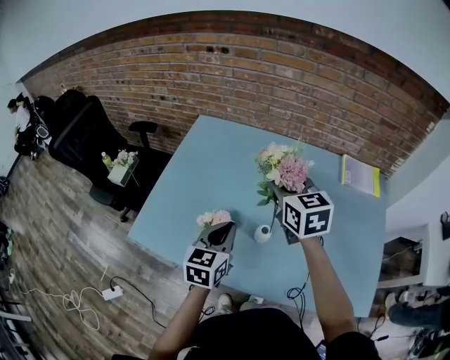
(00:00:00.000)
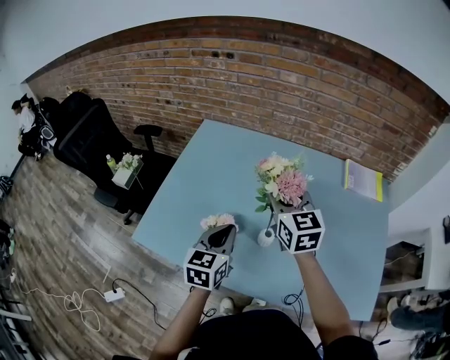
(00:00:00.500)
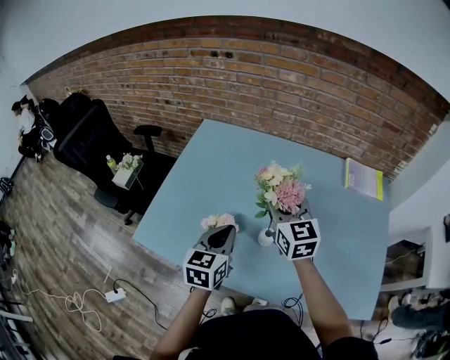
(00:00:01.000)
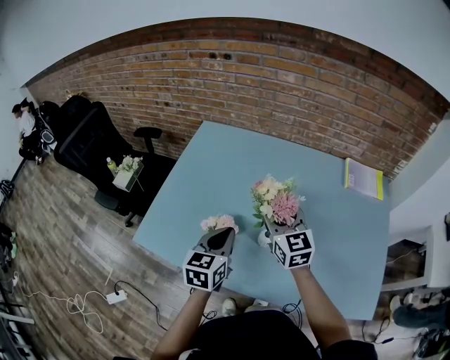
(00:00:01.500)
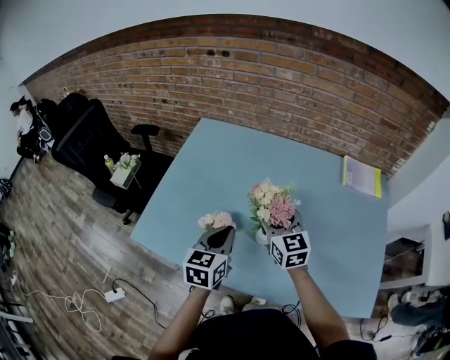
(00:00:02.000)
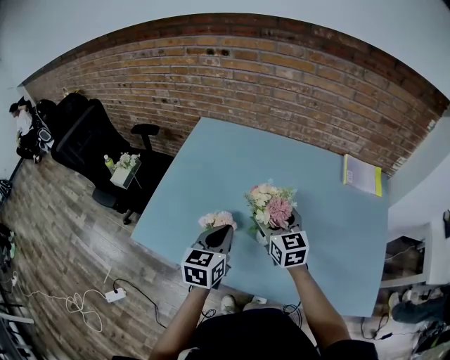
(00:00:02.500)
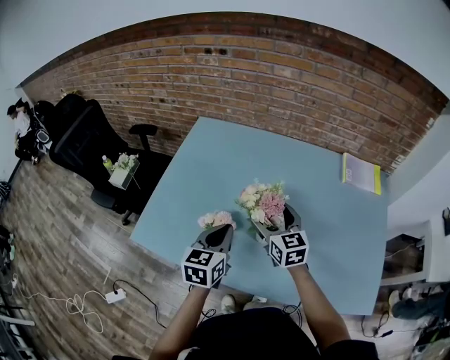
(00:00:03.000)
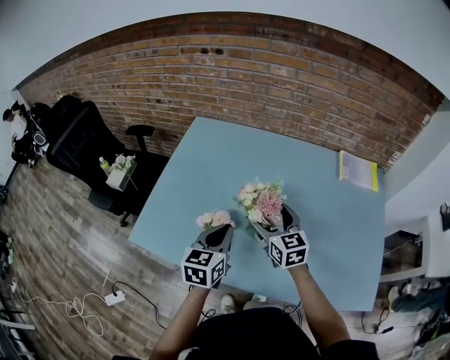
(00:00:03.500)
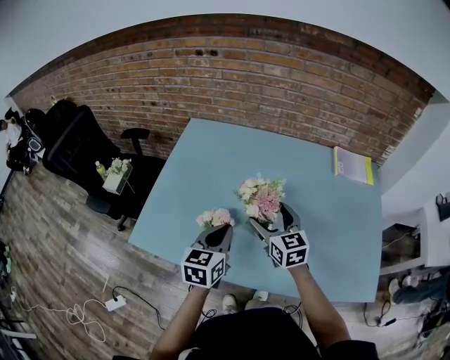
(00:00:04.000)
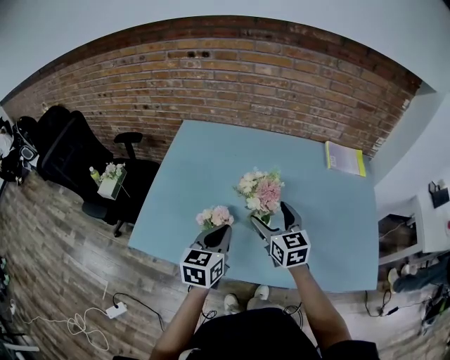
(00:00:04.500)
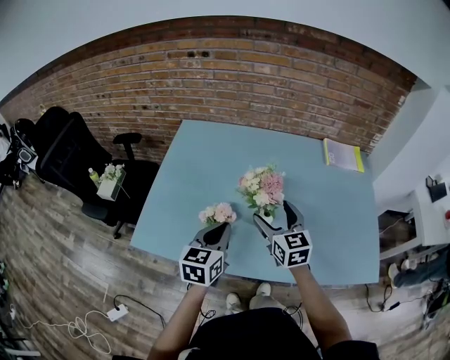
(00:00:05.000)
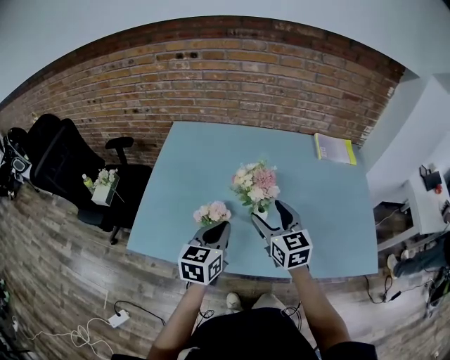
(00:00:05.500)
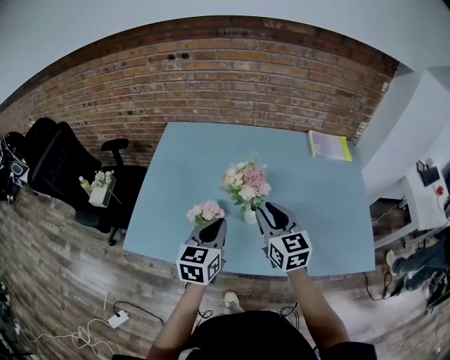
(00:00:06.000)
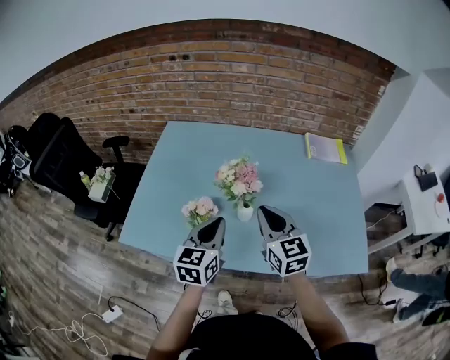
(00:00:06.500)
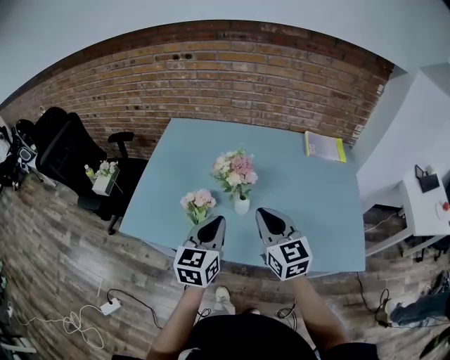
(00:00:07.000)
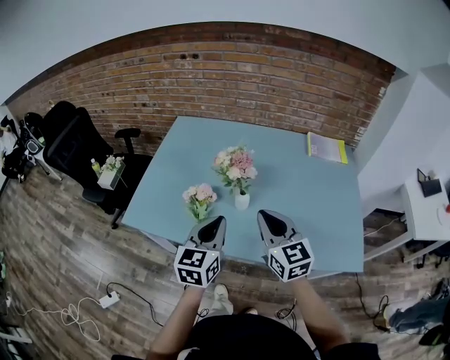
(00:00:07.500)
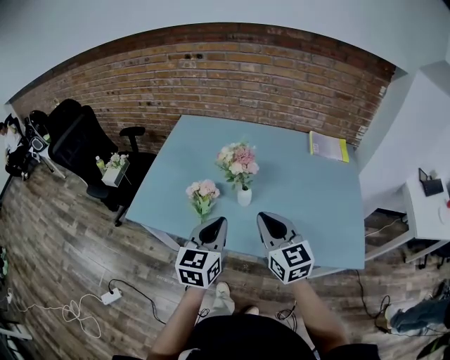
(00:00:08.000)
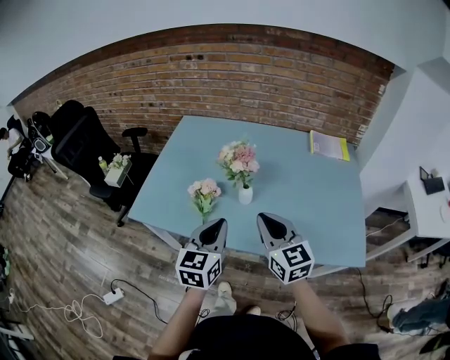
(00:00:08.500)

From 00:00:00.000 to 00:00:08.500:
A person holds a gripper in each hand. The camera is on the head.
From 00:00:00.000 to 00:00:02.000: The right gripper is displaced downward by about 10 cm.
From 00:00:02.000 to 00:00:04.000: The right gripper opens up.
From 00:00:04.000 to 00:00:06.500: The left gripper moves backward, approximately 5 cm. The right gripper shifts approximately 15 cm backward and upward, and closes.
From 00:00:06.500 to 00:00:08.500: The two grippers go some 10 cm backward.

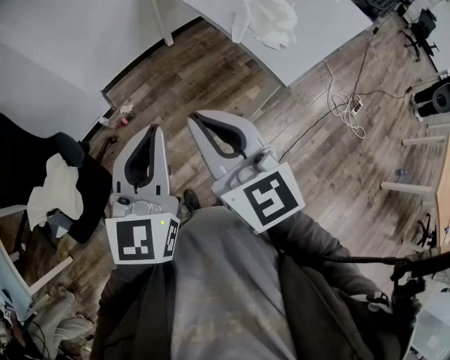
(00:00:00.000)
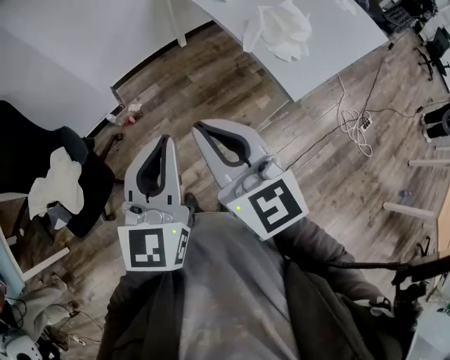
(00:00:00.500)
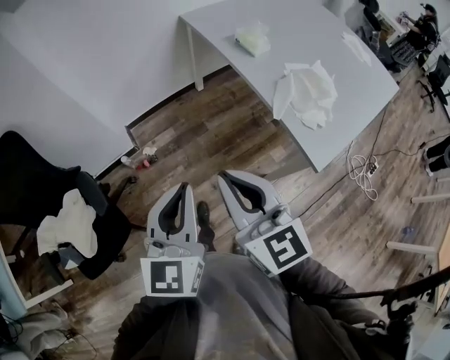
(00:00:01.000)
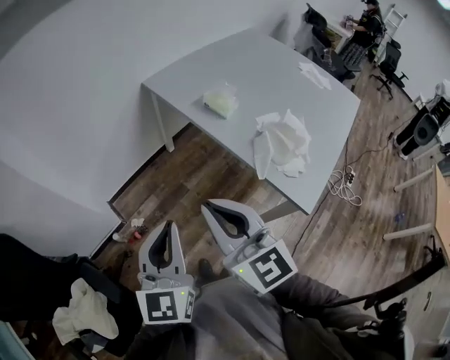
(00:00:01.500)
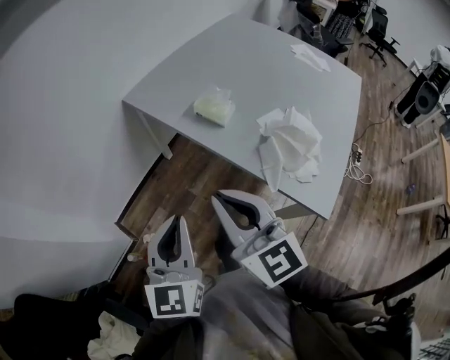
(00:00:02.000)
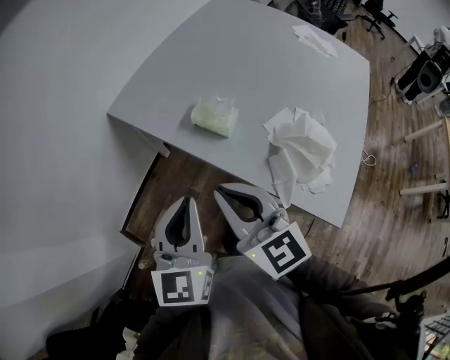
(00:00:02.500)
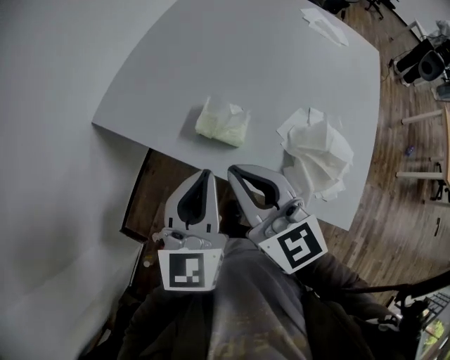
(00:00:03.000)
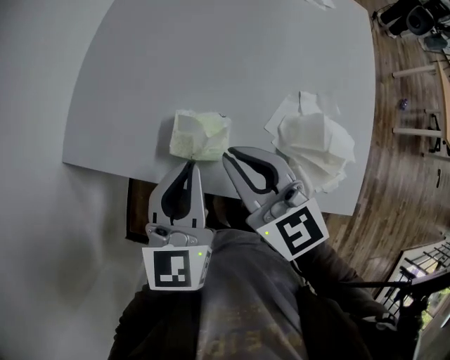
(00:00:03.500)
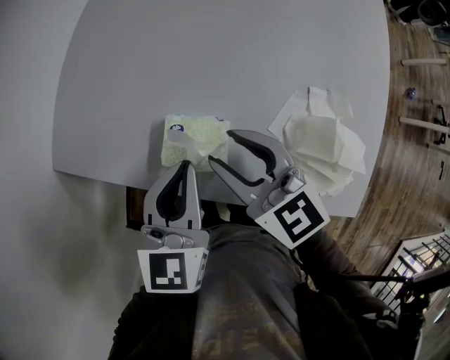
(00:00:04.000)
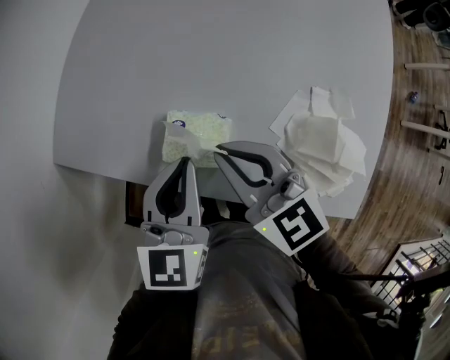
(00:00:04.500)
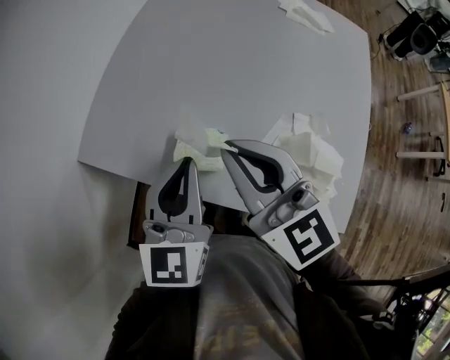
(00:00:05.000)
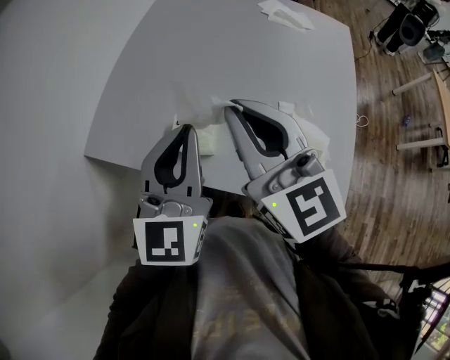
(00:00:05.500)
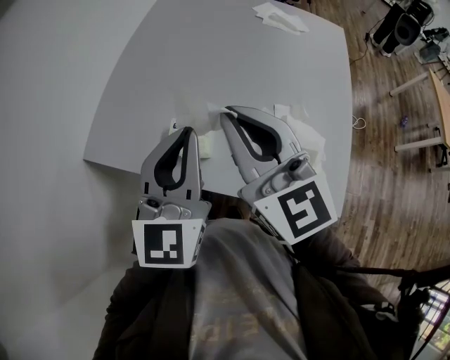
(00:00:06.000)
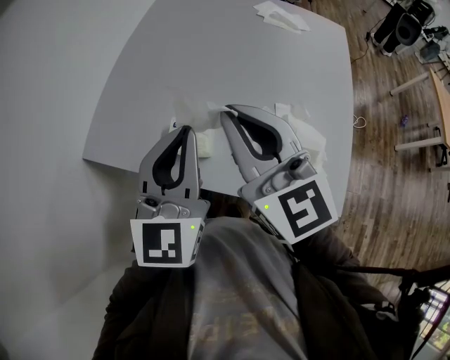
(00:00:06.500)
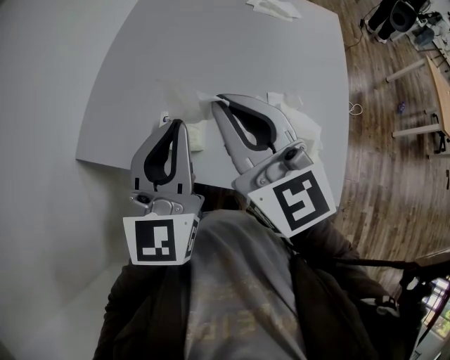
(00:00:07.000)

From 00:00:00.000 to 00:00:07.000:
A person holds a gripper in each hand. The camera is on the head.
From 00:00:00.000 to 00:00:02.000: The two grippers go roughly 40 cm forward.
From 00:00:02.000 to 00:00:03.500: Both grippers move forward, roughly 40 cm. The left gripper changes its angle by approximately 30 degrees. Meanwhile the right gripper turns by approximately 30 degrees.
From 00:00:03.500 to 00:00:05.000: The left gripper travels upward by about 5 cm; the right gripper moves upward, about 10 cm, and opens and closes again.
From 00:00:05.000 to 00:00:07.000: Both grippers move upward, roughly 10 cm.

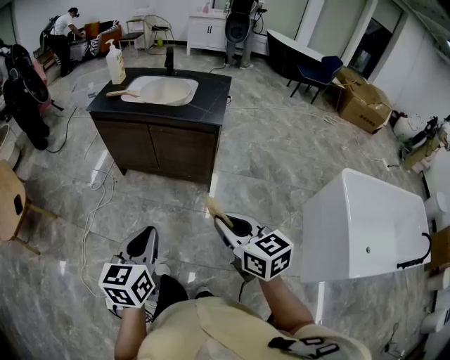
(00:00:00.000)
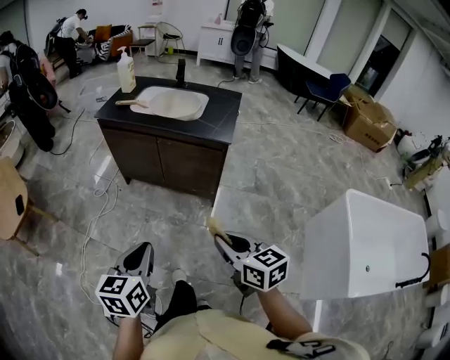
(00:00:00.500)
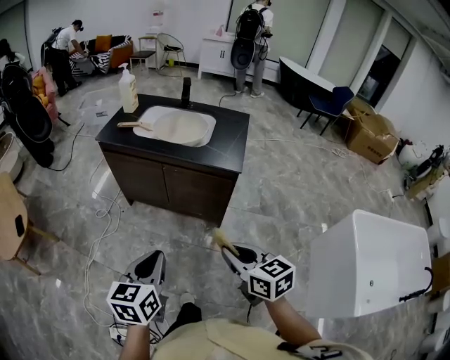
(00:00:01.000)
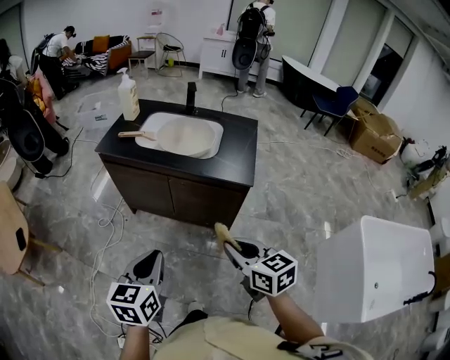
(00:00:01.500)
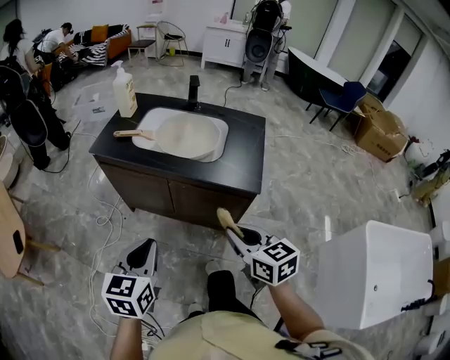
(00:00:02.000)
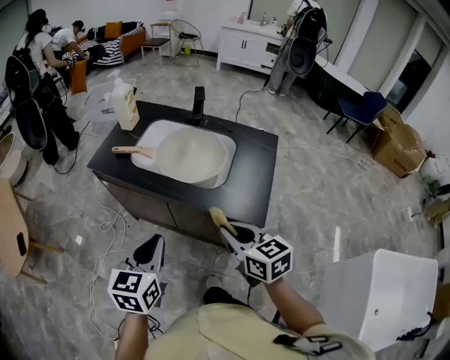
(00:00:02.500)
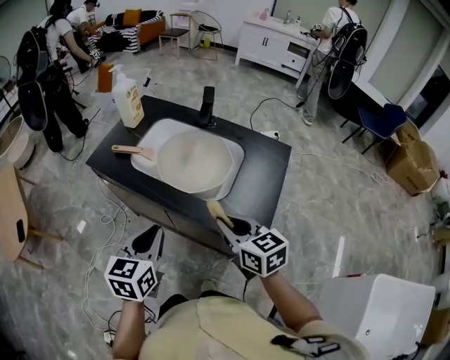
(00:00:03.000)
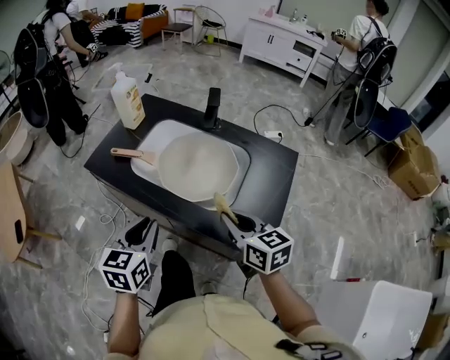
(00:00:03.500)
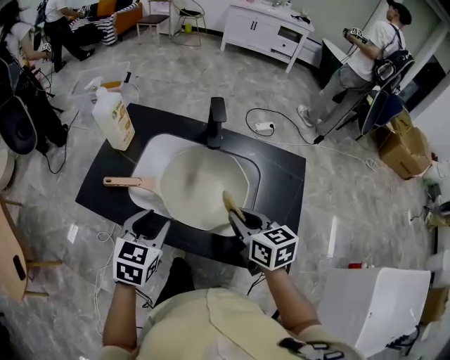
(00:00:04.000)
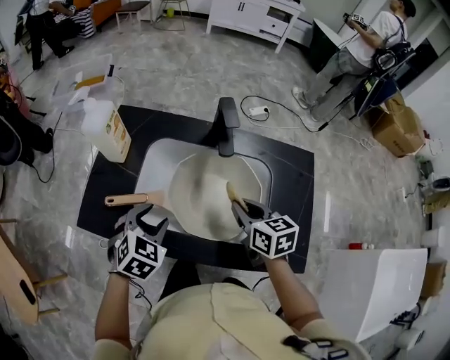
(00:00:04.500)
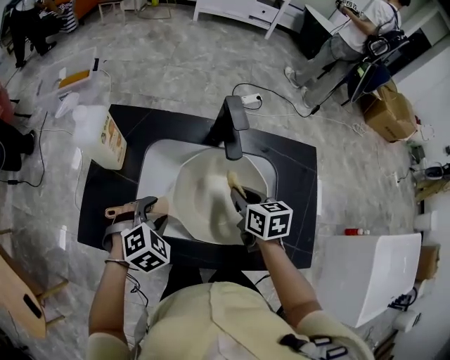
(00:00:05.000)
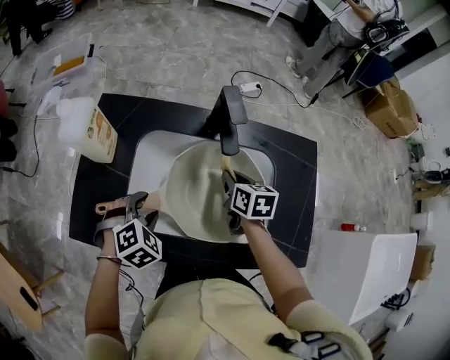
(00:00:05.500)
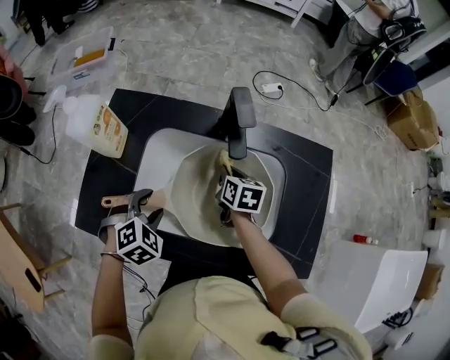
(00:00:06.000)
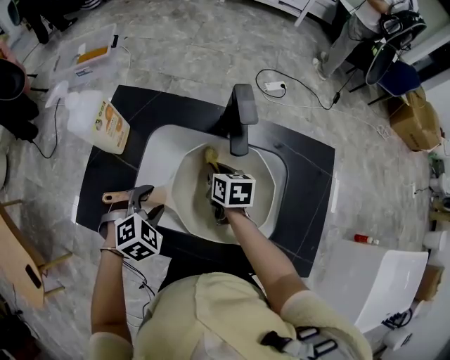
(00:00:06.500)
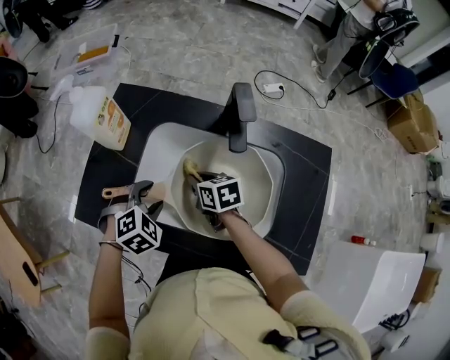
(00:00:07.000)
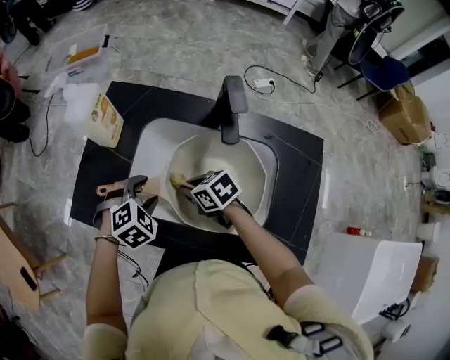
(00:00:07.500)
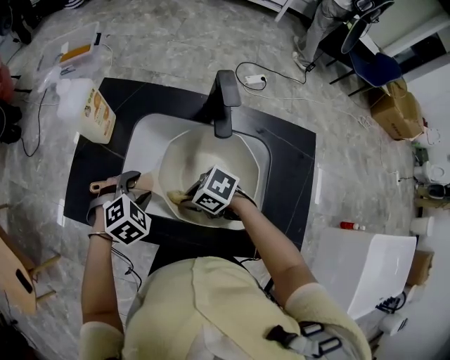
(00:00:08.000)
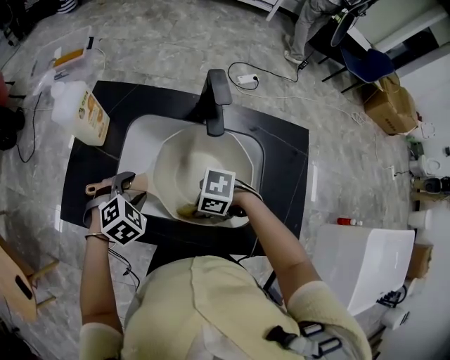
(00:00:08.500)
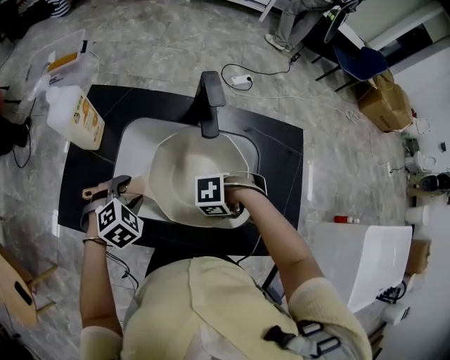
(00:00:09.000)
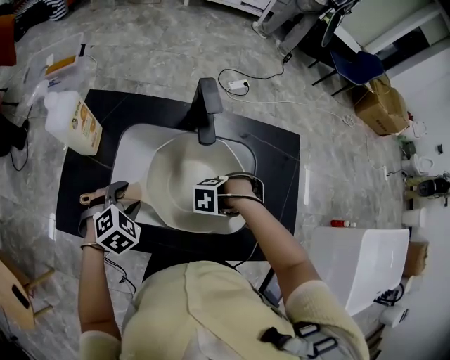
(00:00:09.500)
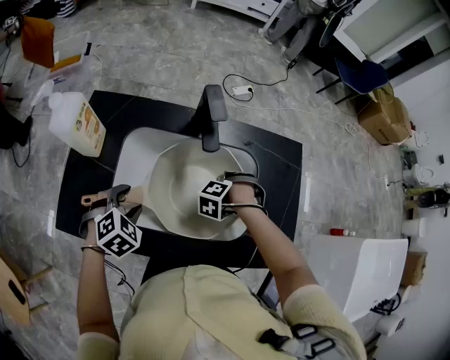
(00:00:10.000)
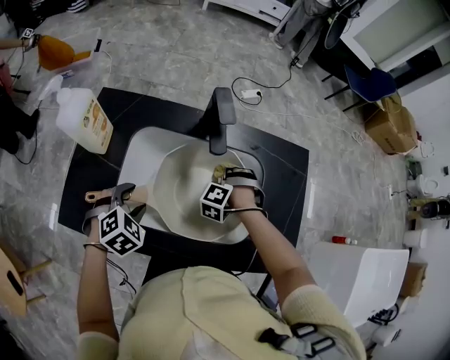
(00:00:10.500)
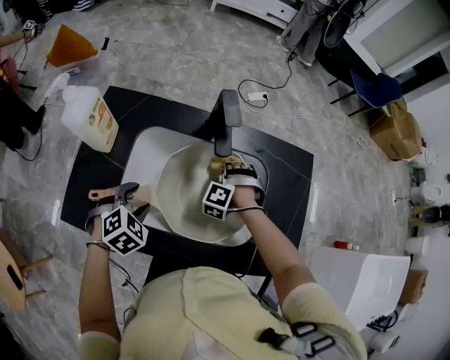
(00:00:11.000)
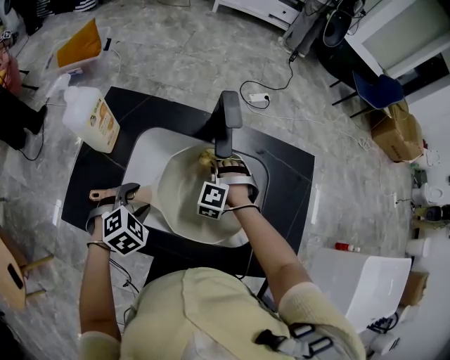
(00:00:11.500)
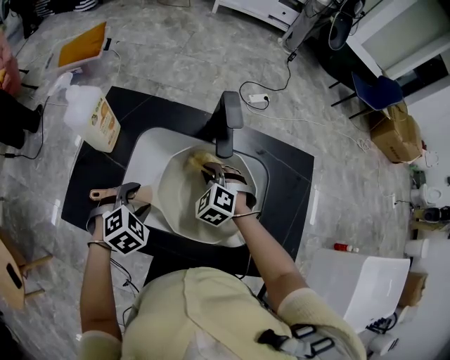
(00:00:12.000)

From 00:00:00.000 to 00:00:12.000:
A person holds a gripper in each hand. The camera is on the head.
From 00:00:00.000 to 00:00:02.000: The two grippers go approximately 35 cm forward.
From 00:00:02.000 to 00:00:04.000: The two grippers travel together, forward, some 40 cm. The left gripper opens up.
From 00:00:04.000 to 00:00:06.000: The left gripper heads forward, downward and to the left, covering roughly 20 cm, and swivels approximately 50 degrees, while the right gripper travels forward and downward by some 25 cm, and changes its angle by some 30 degrees.
From 00:00:06.000 to 00:00:08.000: The right gripper moves roughly 20 cm, and turns by some 70 degrees.
From 00:00:08.000 to 00:00:10.000: The right gripper changes place by roughly 20 cm, and turns by approximately 70 degrees.
From 00:00:10.000 to 00:00:12.000: The right gripper ends up roughly 15 cm from where it was, and changes its angle by roughly 50 degrees.
